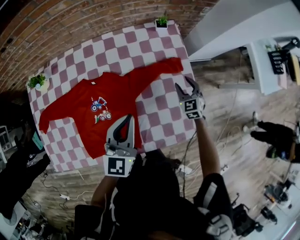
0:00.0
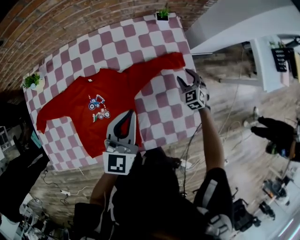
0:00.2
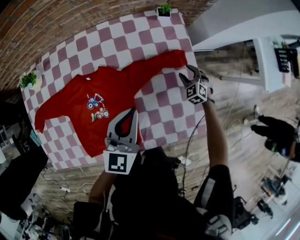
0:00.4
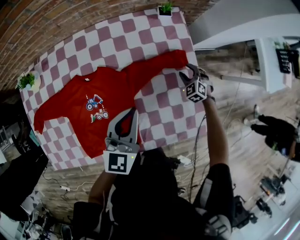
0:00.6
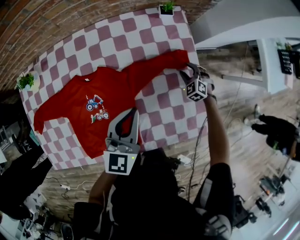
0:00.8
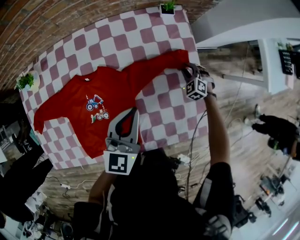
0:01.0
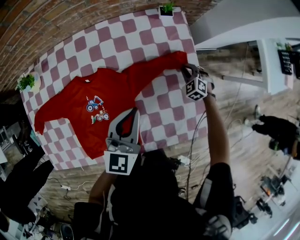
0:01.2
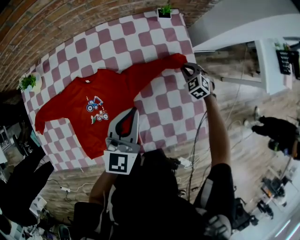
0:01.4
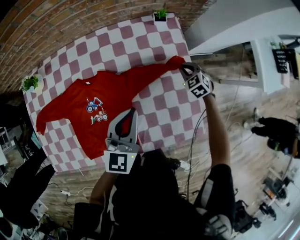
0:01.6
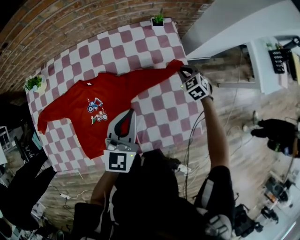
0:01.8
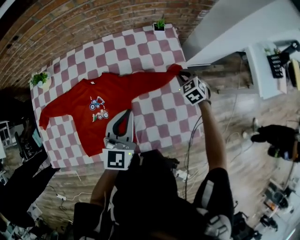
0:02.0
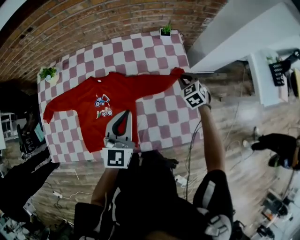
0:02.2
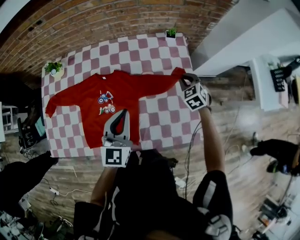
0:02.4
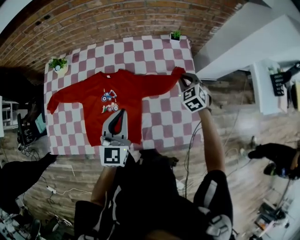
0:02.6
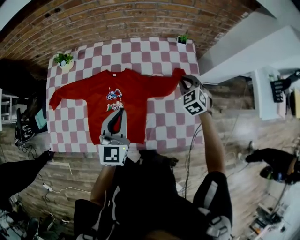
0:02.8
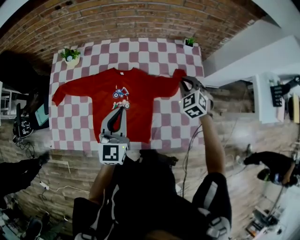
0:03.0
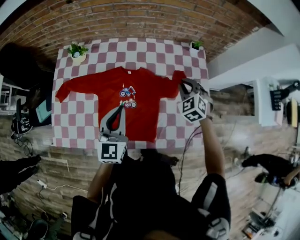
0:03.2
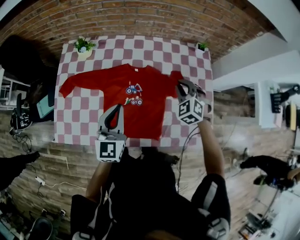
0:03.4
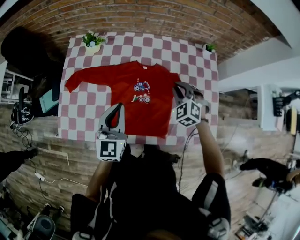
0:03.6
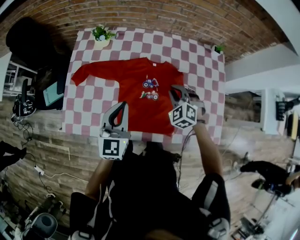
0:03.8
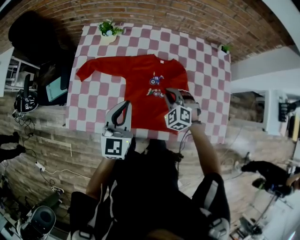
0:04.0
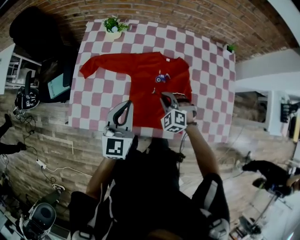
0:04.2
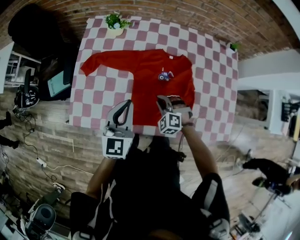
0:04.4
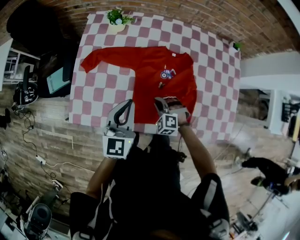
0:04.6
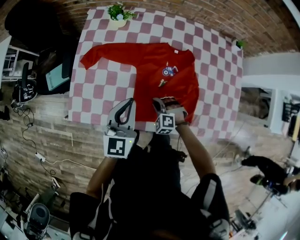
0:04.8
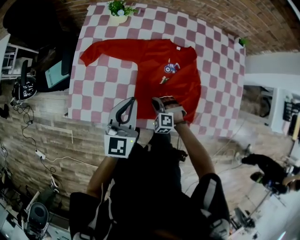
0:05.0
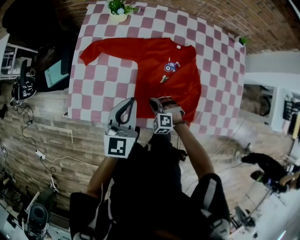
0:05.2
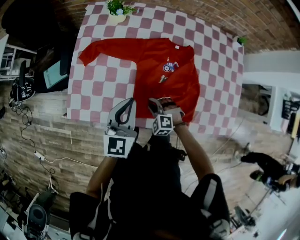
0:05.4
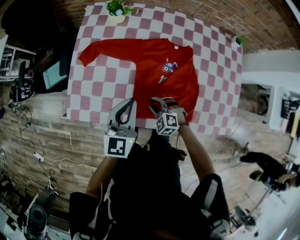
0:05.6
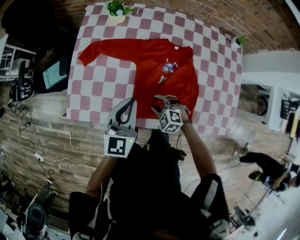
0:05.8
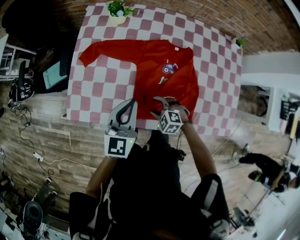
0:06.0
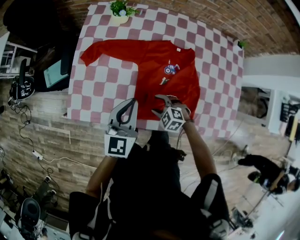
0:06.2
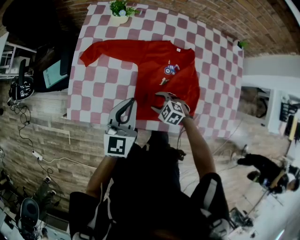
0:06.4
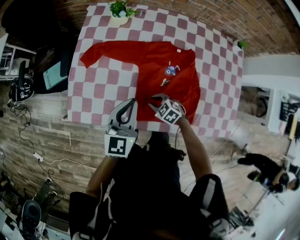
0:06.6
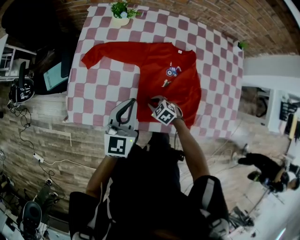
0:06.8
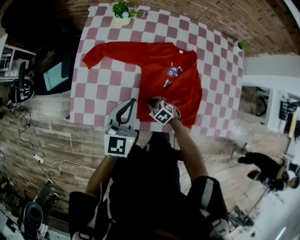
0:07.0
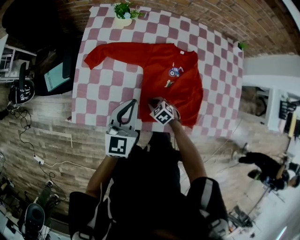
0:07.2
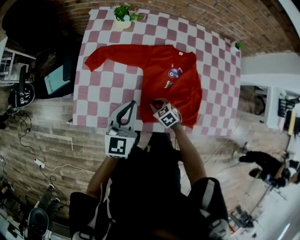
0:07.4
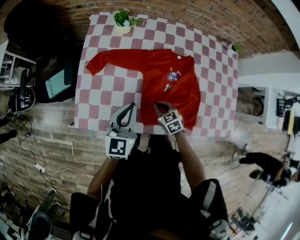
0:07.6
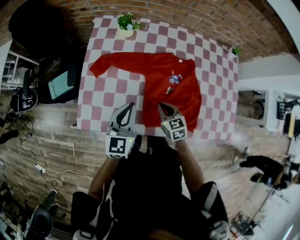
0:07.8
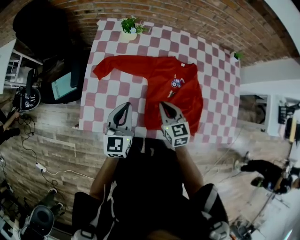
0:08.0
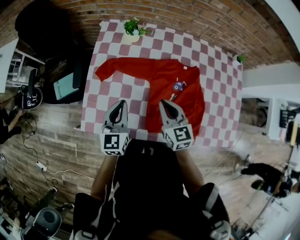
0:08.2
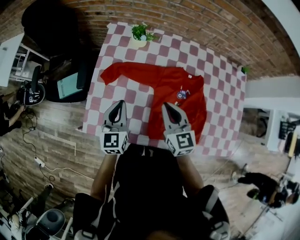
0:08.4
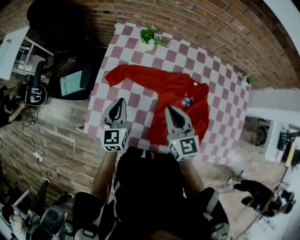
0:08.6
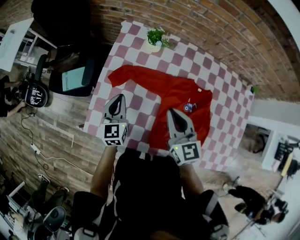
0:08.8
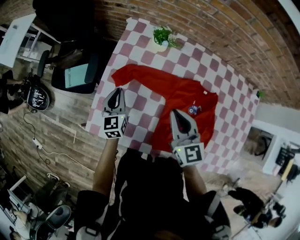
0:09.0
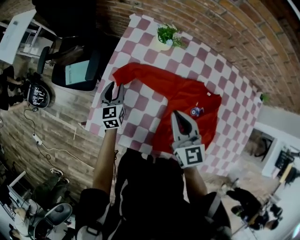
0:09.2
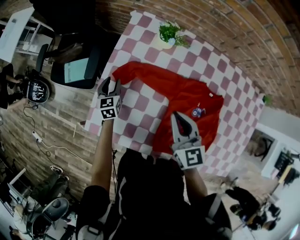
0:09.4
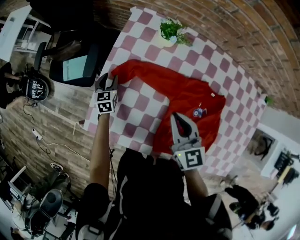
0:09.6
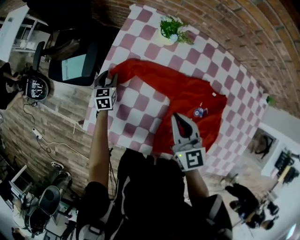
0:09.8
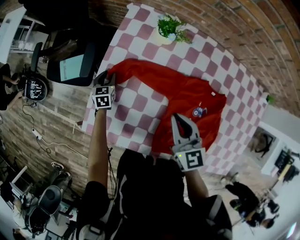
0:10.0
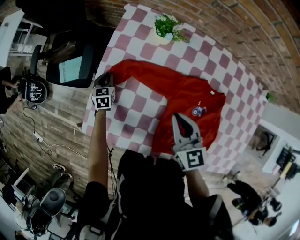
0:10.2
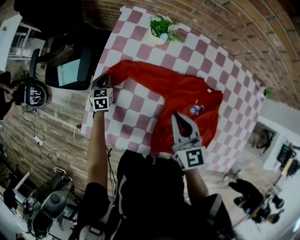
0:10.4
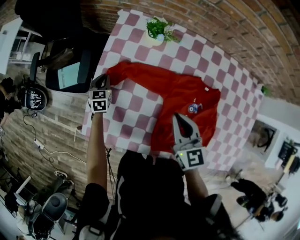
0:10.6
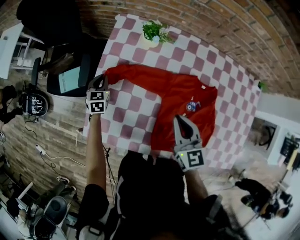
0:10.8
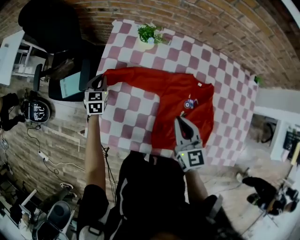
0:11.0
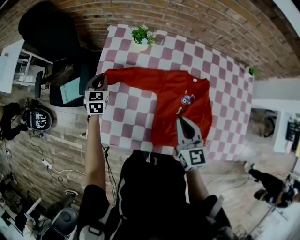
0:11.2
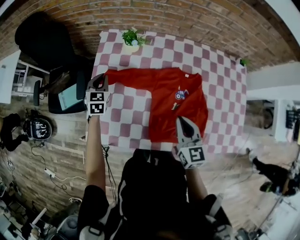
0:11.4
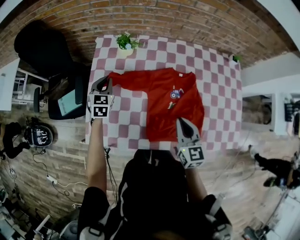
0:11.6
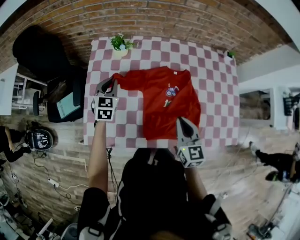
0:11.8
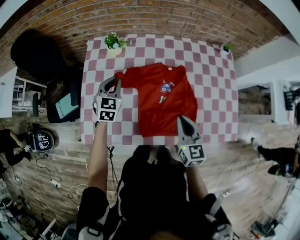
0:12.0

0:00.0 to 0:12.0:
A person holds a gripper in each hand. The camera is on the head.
0:00.0 to 0:01.6: The right gripper shifts about 10 cm forward, reaches roughly 15 cm downward, then returns, rotates roughly 20 degrees, and closes, while the left gripper moves roughly 5 cm.
0:01.6 to 0:03.0: The right gripper travels to the left, upward and backward by some 25 cm. The left gripper heads to the left and backward, covering about 20 cm.
0:03.0 to 0:04.4: The left gripper is displaced to the left by roughly 25 cm. Meanwhile the right gripper goes approximately 40 cm to the left, downward and backward, and rotates about 30 degrees.
0:04.4 to 0:06.0: The right gripper shifts approximately 10 cm backward, downward and to the left, swivels roughly 20 degrees, and opens its fingers.
0:06.0 to 0:07.6: The right gripper moves forward, some 5 cm, travels downward and back again, about 5 cm each way, rotates around the line of its fingers by approximately 40 degrees, clockwise from behind, and closes. The left gripper heads to the left, covering about 5 cm.
0:07.6 to 0:09.0: The left gripper moves forward, to the left and downward, about 25 cm, and swivels some 30 degrees, while the right gripper heads upward and forward, covering some 30 cm, and points its fingers roughly 30 degrees further upward.
0:09.0 to 0:10.4: The left gripper shifts some 20 cm downward and forward, swivels about 20 degrees, and opens and closes again. Meanwhile the right gripper is displaced downward by roughly 5 cm.
0:10.4 to 0:12.0: The left gripper is displaced upward by about 25 cm, and turns by about 40 degrees. Meanwhile the right gripper shifts by roughly 25 cm, and changes its angle by some 30 degrees.

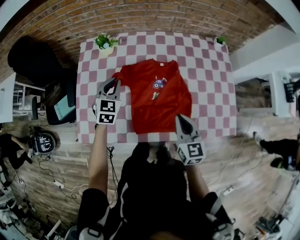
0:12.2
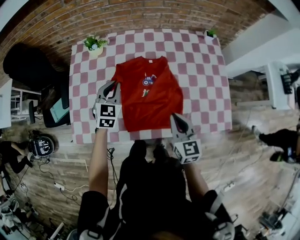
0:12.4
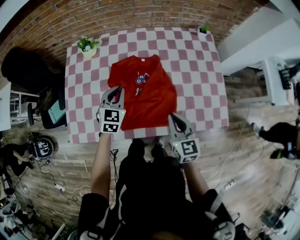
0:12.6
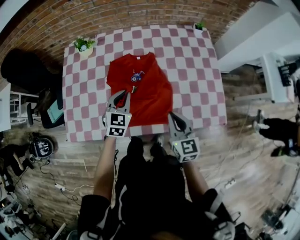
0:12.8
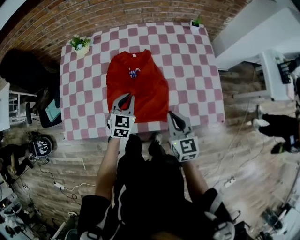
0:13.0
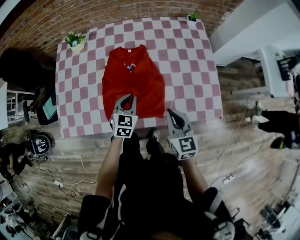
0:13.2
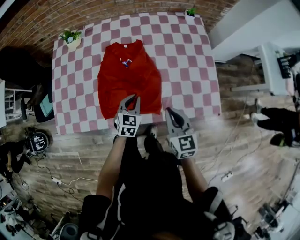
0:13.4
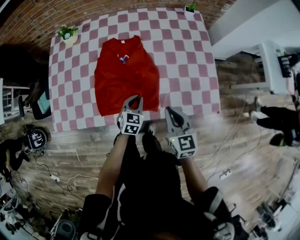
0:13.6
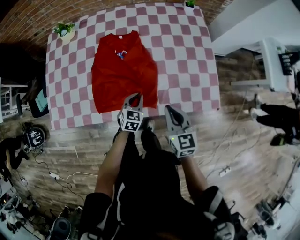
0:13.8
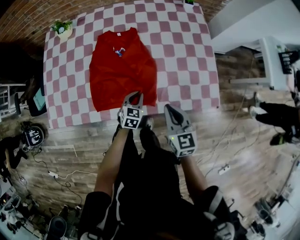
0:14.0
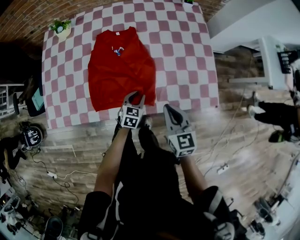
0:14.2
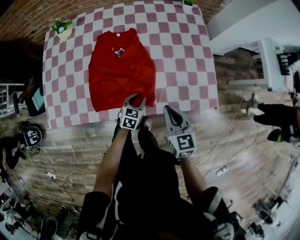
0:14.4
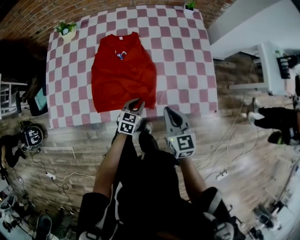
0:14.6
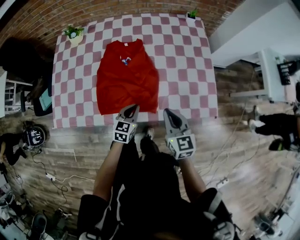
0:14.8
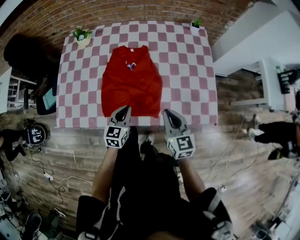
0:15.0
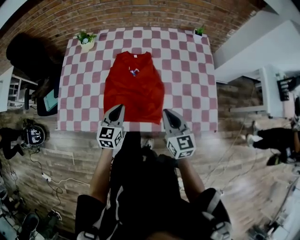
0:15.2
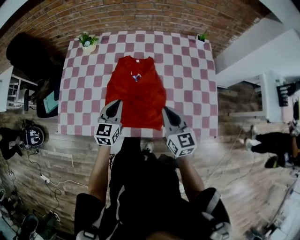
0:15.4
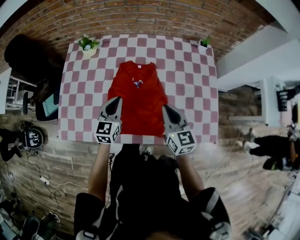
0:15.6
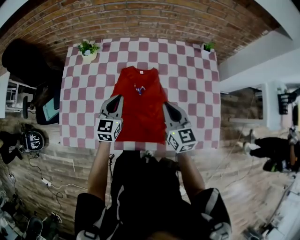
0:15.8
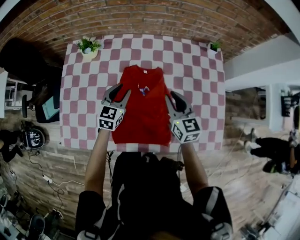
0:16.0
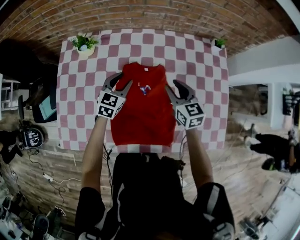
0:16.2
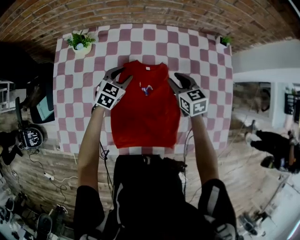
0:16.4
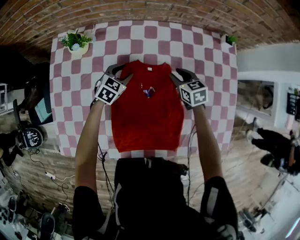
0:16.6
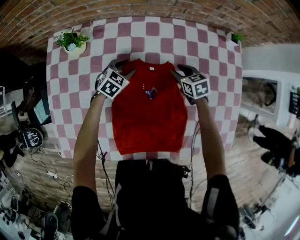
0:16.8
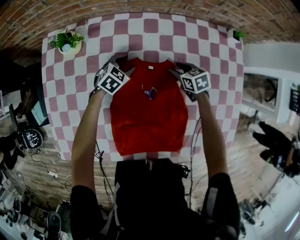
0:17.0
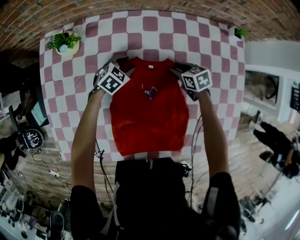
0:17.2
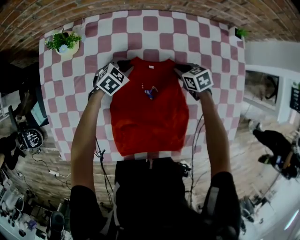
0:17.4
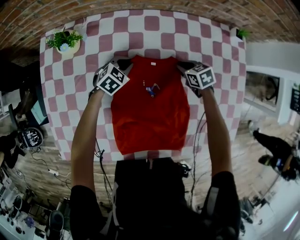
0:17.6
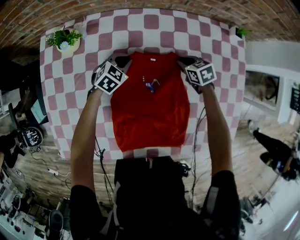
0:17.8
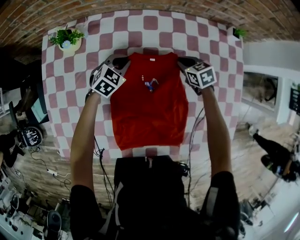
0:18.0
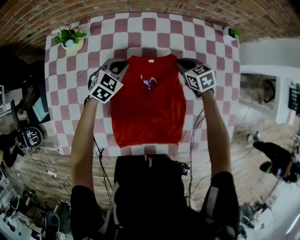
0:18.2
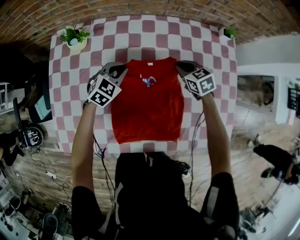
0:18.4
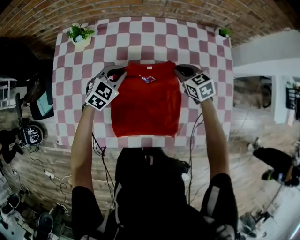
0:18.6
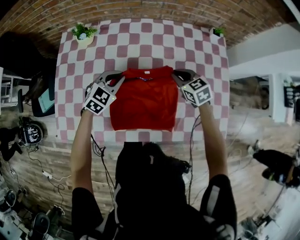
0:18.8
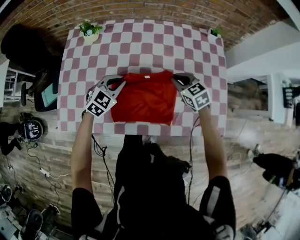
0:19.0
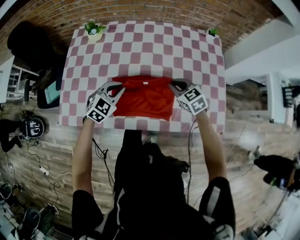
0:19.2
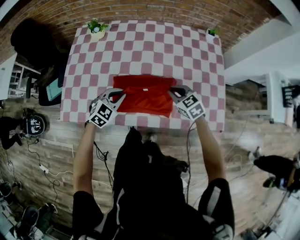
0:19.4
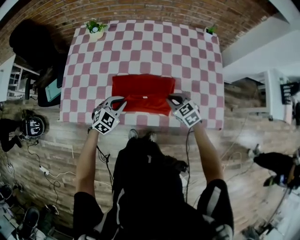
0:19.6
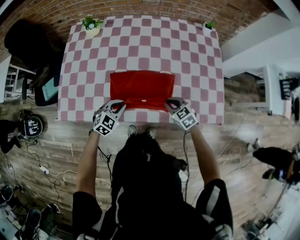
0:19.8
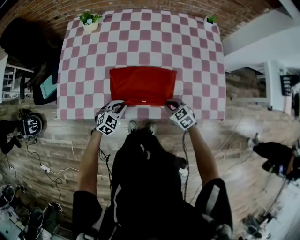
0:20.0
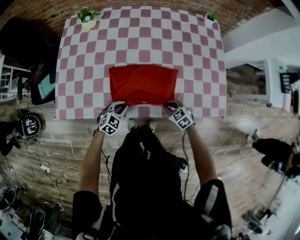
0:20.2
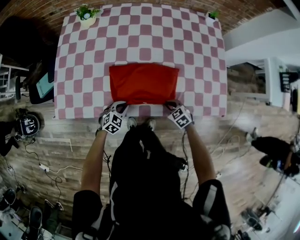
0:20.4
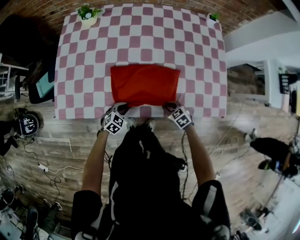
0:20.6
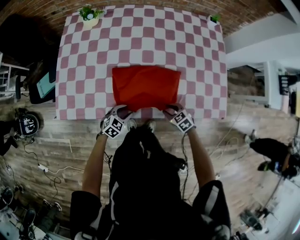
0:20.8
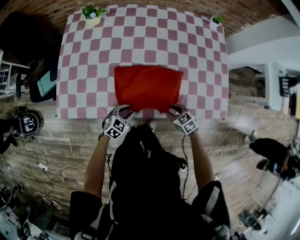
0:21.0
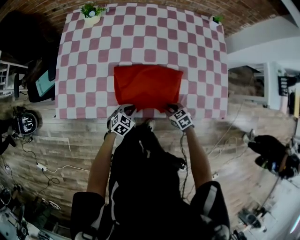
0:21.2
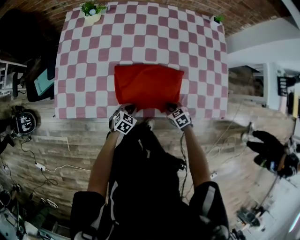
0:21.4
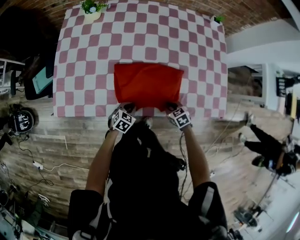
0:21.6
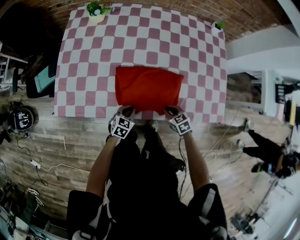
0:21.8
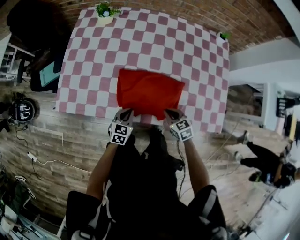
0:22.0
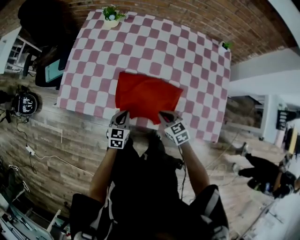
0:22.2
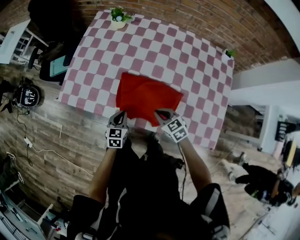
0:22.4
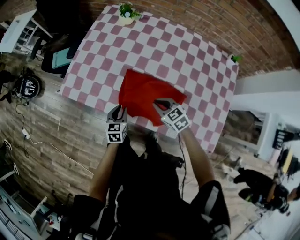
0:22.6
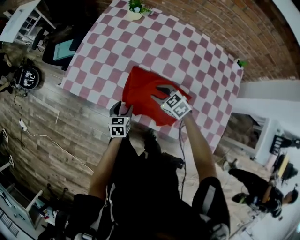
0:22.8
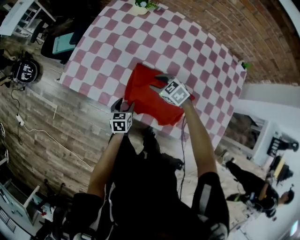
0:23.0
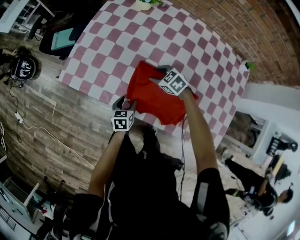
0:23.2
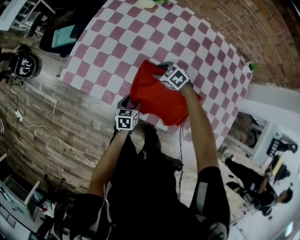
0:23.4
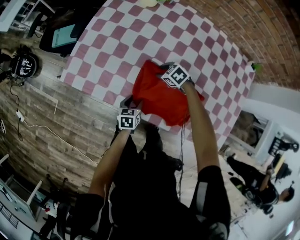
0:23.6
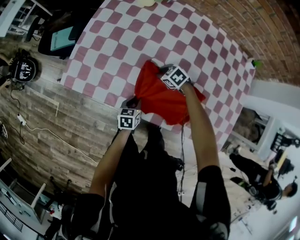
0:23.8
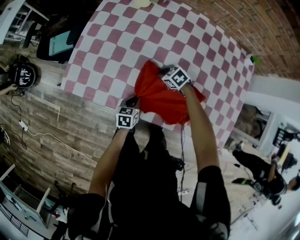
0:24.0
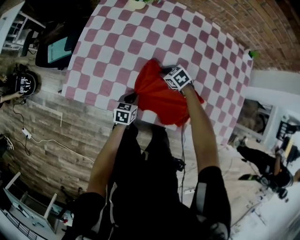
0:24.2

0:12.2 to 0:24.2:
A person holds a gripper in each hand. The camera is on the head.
0:12.2 to 0:13.8: The right gripper is displaced to the right and backward by roughly 20 cm, while the left gripper goes roughly 40 cm to the right, downward and backward.
0:13.8 to 0:15.2: The left gripper moves upward and to the left, about 20 cm, and turns by some 20 degrees; the right gripper moves some 5 cm.
0:15.2 to 0:16.6: Both grippers travel together forward and downward, roughly 40 cm. The left gripper rotates roughly 30 degrees, and opens up, while the right gripper turns by some 30 degrees, and opens.
0:16.6 to 0:18.2: The right gripper goes downward and returns, about 10 cm each way, and closes its fingers. The left gripper moves some 10 cm downward and comes back, and closes up.
0:18.2 to 0:19.8: The two grippers travel together, backward, about 40 cm.
0:19.8 to 0:21.2: The right gripper is displaced downward and backward by roughly 10 cm, while the left gripper travels downward by roughly 10 cm, and opens, then closes again.
0:21.2 to 0:22.6: The right gripper heads upward, covering approximately 15 cm, and turns by roughly 30 degrees. The left gripper moves upward, roughly 10 cm, and rotates about 60 degrees.
0:22.6 to 0:24.2: The right gripper moves forward and downward, about 25 cm, turns by approximately 20 degrees, and opens, then closes once more. Meanwhile the left gripper goes approximately 10 cm downward and forward, turns by about 20 degrees, and opens, then closes again.
